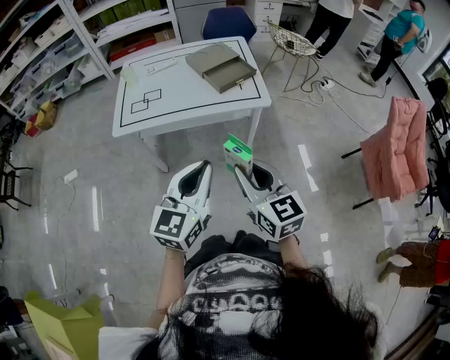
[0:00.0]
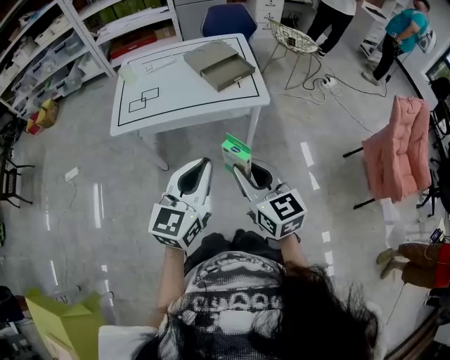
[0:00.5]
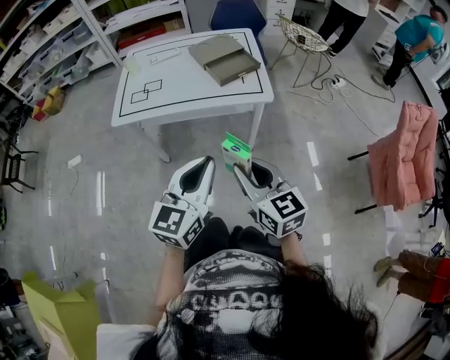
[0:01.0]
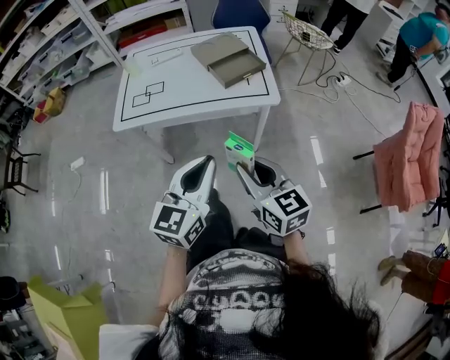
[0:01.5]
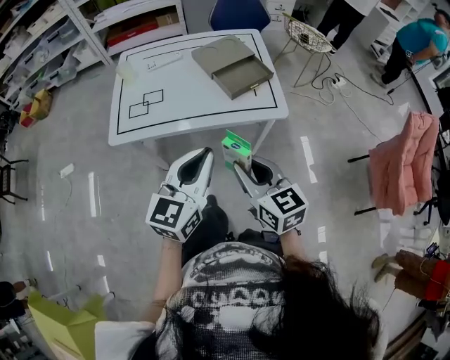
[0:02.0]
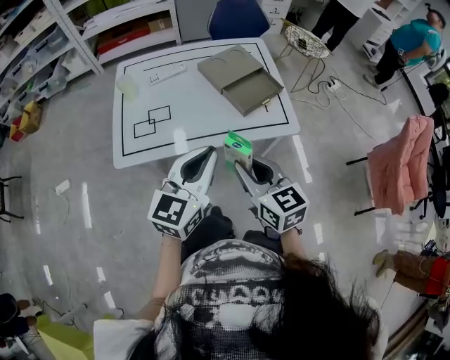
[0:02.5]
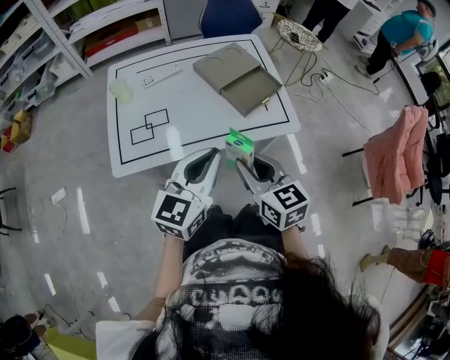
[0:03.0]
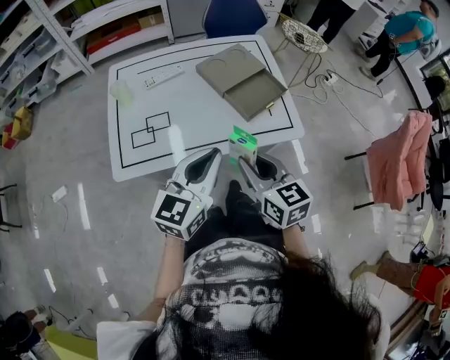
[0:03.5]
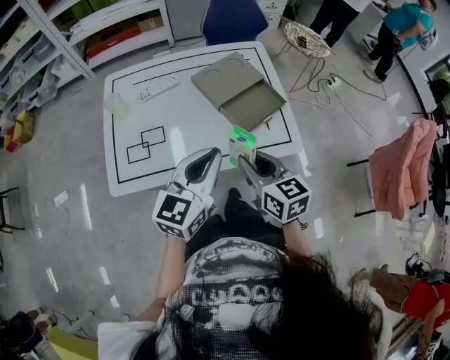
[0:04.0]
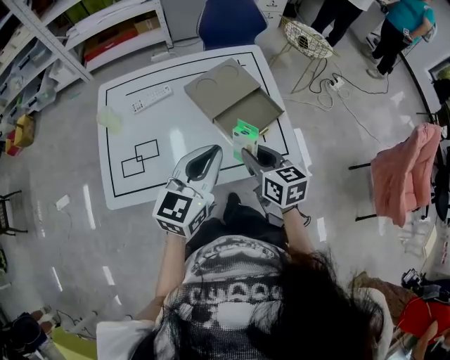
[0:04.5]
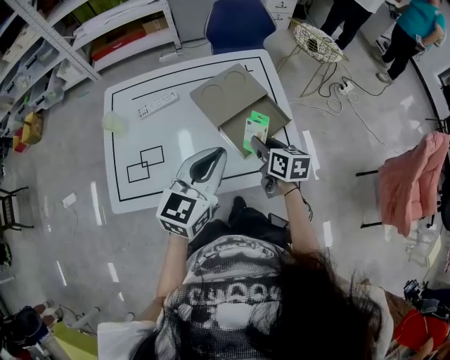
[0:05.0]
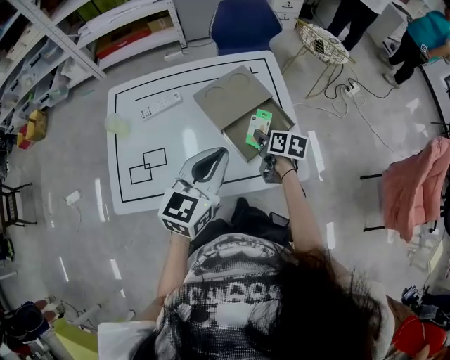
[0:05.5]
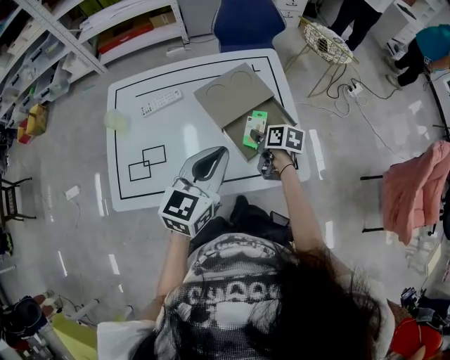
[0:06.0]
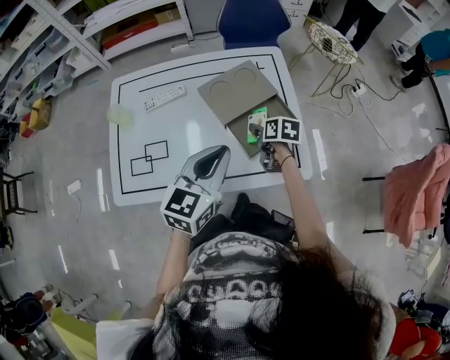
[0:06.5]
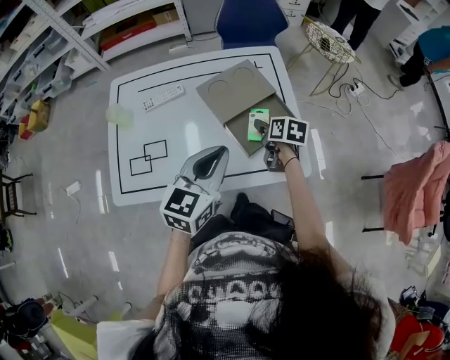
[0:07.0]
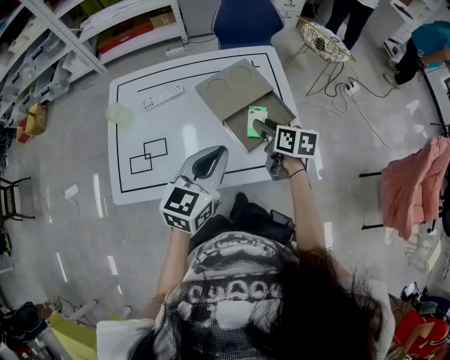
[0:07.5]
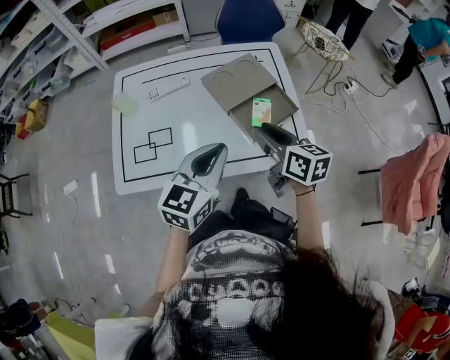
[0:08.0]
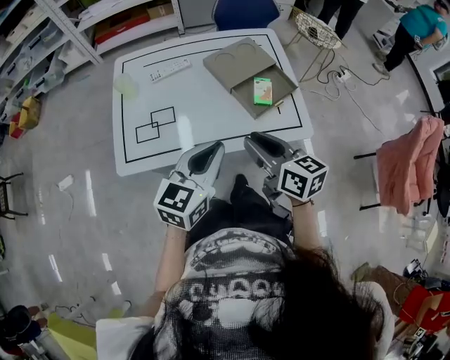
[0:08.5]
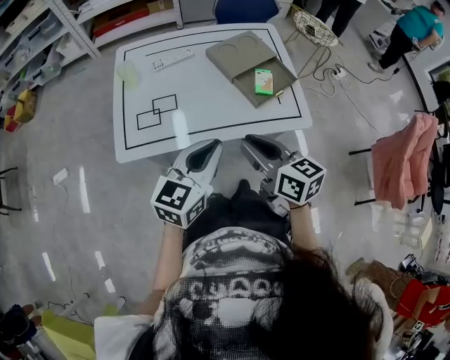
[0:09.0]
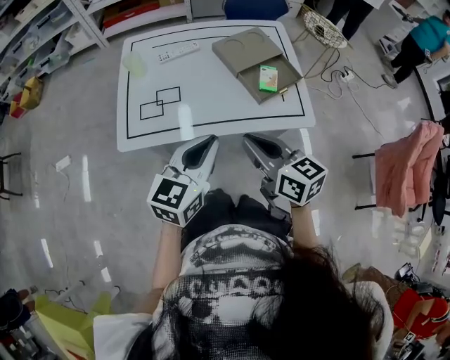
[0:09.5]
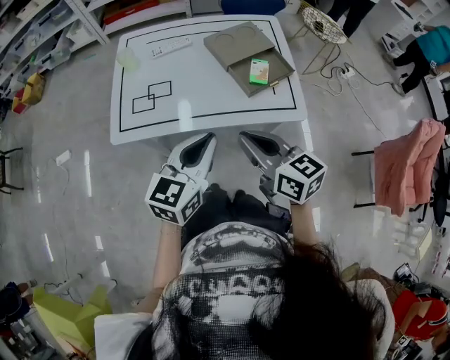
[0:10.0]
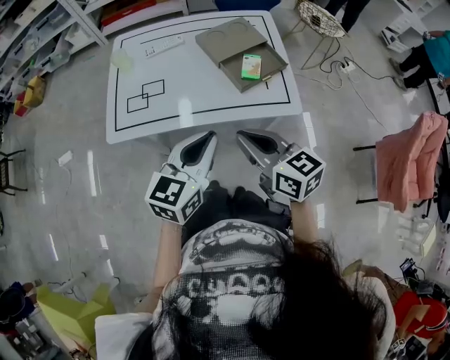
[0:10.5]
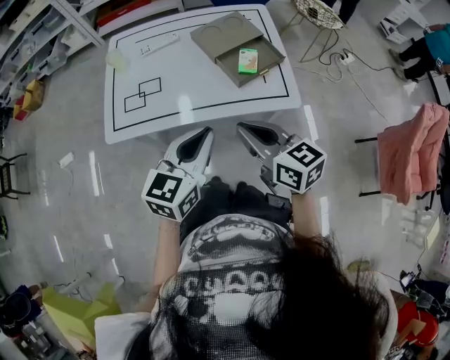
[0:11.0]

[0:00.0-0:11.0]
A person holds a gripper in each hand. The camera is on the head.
0:00.0 to 0:02.0: Both grippers travel together forward, approximately 15 cm.
0:02.0 to 0:03.5: Both grippers move forward and to the left, about 20 cm.
0:03.5 to 0:05.5: The right gripper shifts approximately 35 cm forward, downward and to the right, and rotates about 40 degrees; the left gripper heads forward and to the right, covering some 20 cm.
0:05.5 to 0:07.5: The right gripper shifts roughly 5 cm upward, and opens its fingers.
0:07.5 to 0:09.0: The right gripper moves backward, to the left and upward, approximately 35 cm, changes its angle by some 20 degrees, and closes; the left gripper moves backward and to the left, some 20 cm.
0:09.0 to 0:11.0: The two grippers go about 10 cm to the right.

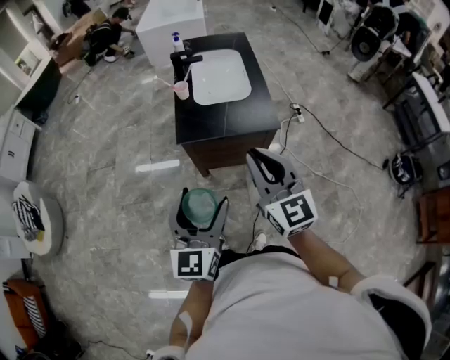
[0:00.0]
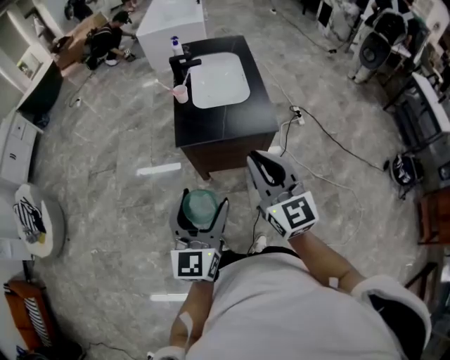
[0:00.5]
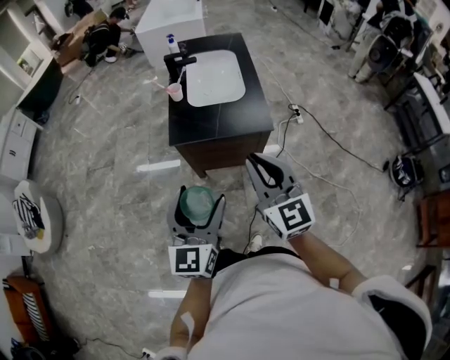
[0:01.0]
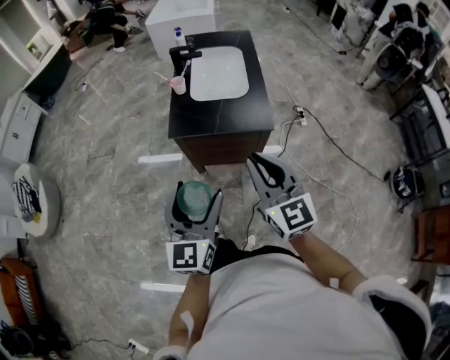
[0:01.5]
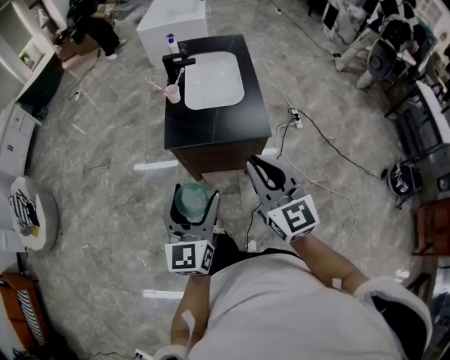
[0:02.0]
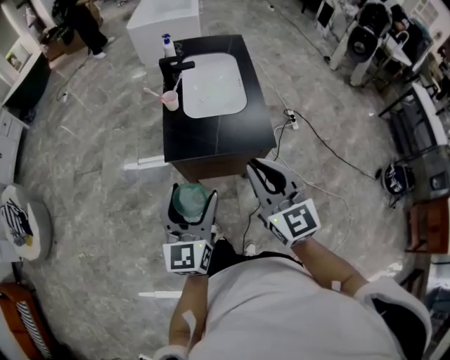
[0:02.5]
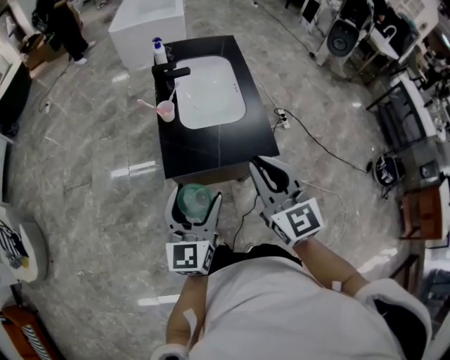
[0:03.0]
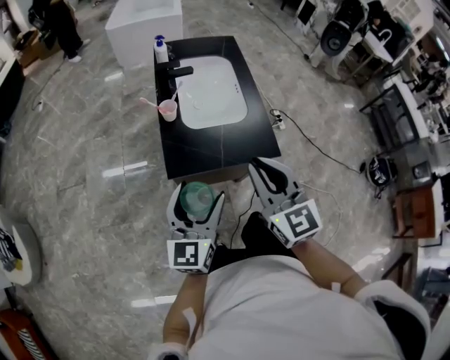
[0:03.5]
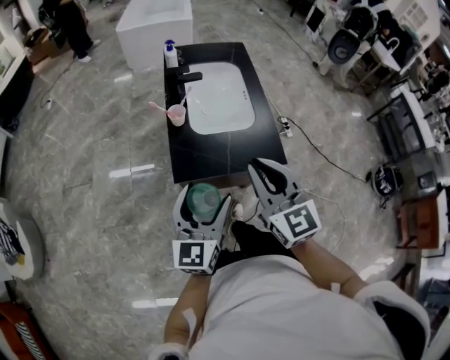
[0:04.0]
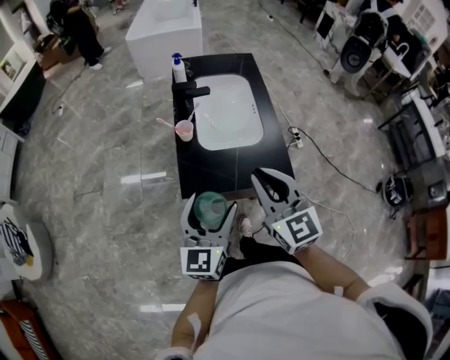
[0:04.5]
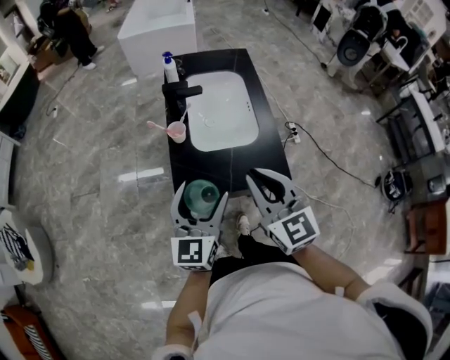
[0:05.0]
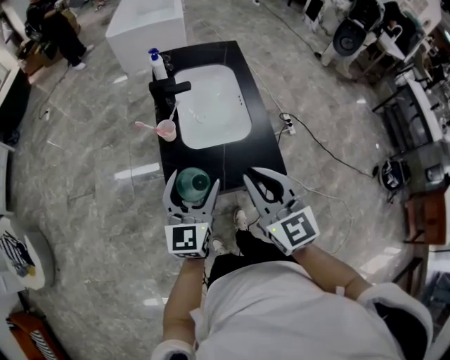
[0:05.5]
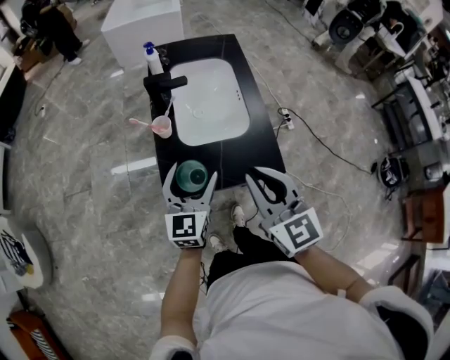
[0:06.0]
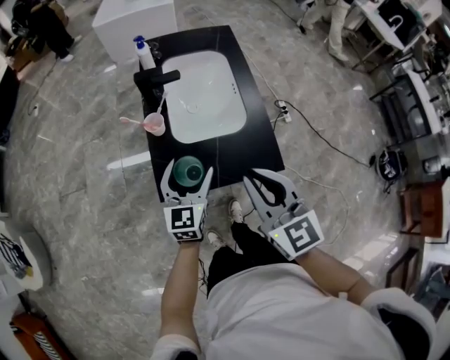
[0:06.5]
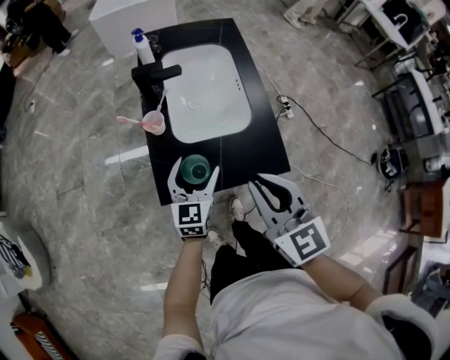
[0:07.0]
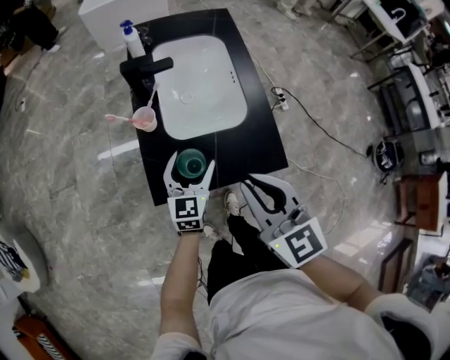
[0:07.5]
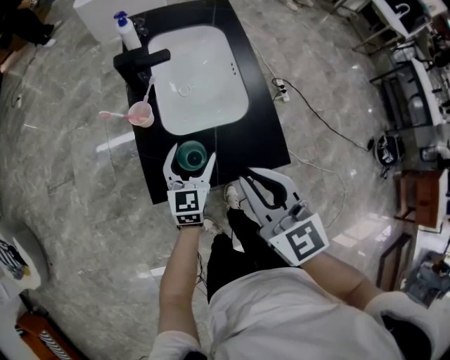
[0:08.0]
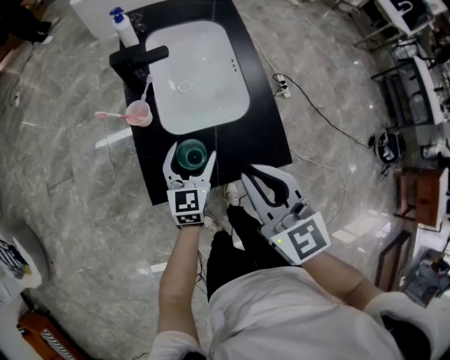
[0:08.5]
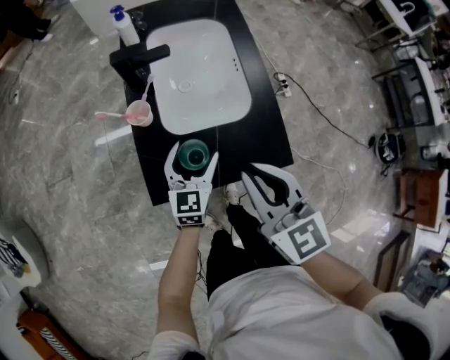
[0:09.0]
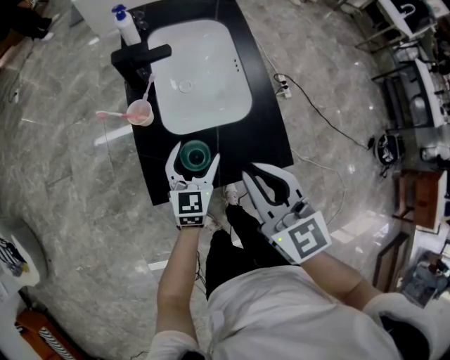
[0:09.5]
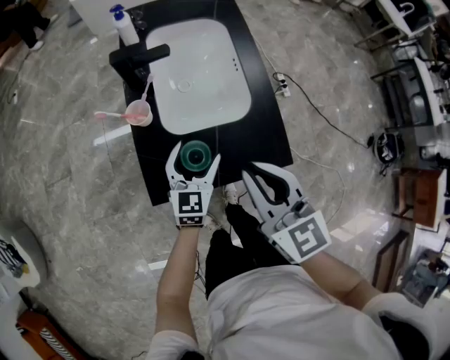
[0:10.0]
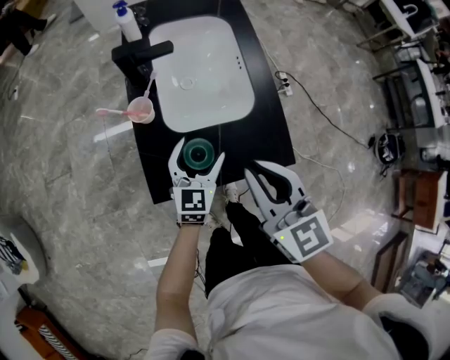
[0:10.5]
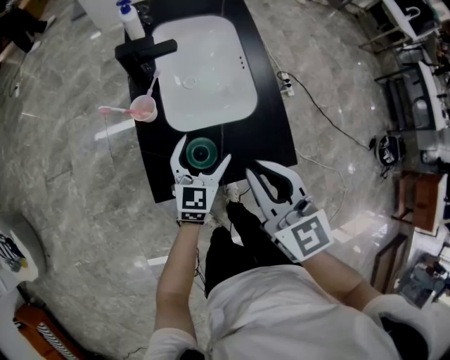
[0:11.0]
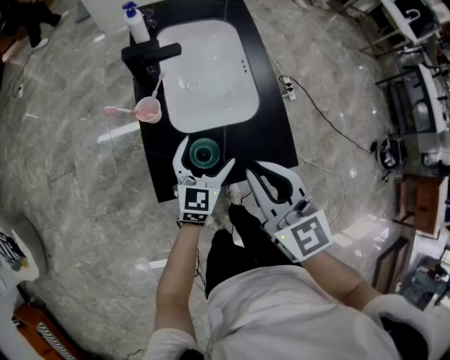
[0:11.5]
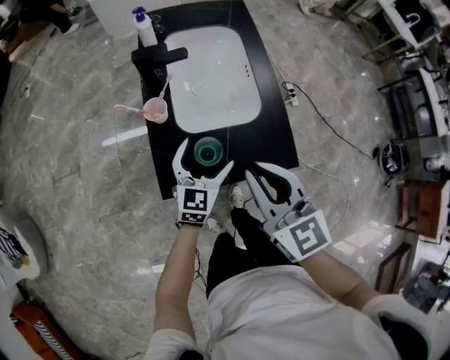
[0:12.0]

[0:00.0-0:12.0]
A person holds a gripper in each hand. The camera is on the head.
0:00.0 to 0:02.0: The right gripper moves to the right, some 5 cm, while the left gripper ends up roughly 5 cm from where it was.
0:02.0 to 0:04.0: The left gripper shifts some 15 cm forward. The right gripper moves forward and to the left, approximately 20 cm.
0:04.0 to 0:06.0: The right gripper goes approximately 5 cm forward; the left gripper moves forward and downward, some 15 cm.
0:06.0 to 0:08.0: The left gripper goes roughly 15 cm downward and forward. Meanwhile the right gripper goes about 5 cm downward.
0:08.0 to 0:12.0: There are only small adjustments of the grippers.

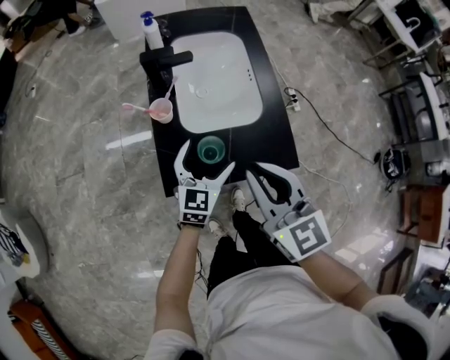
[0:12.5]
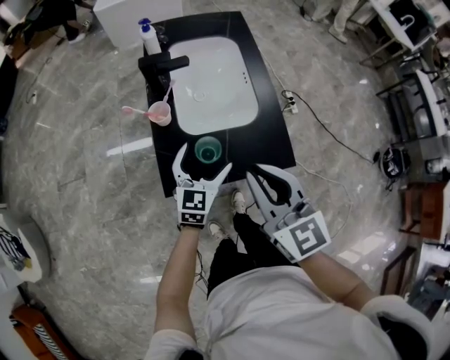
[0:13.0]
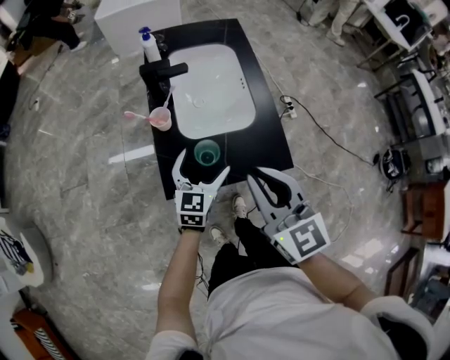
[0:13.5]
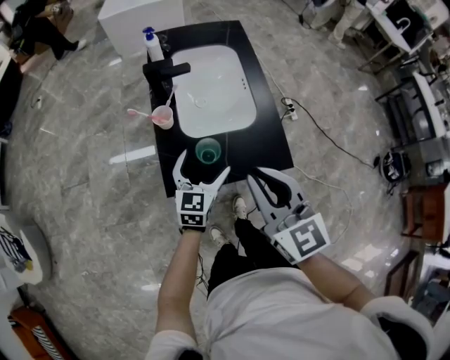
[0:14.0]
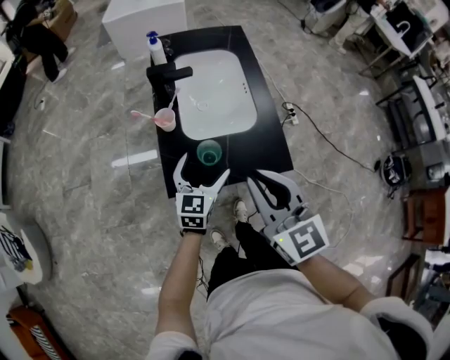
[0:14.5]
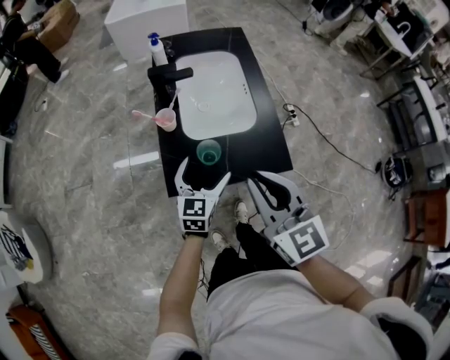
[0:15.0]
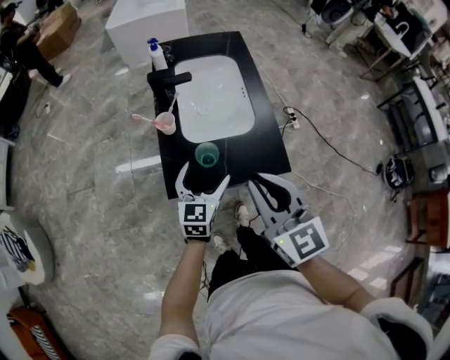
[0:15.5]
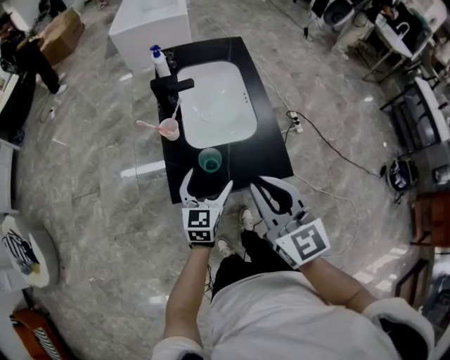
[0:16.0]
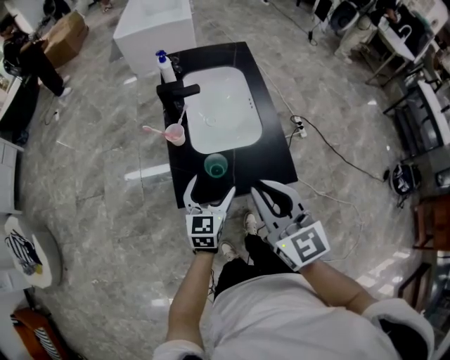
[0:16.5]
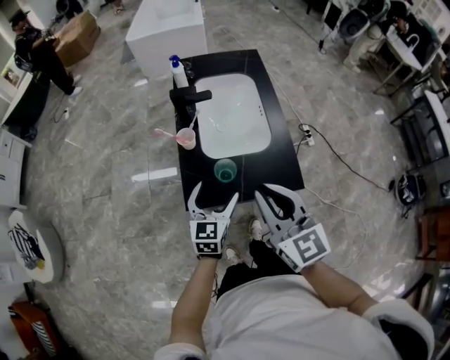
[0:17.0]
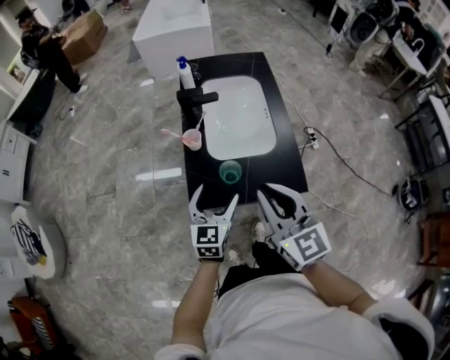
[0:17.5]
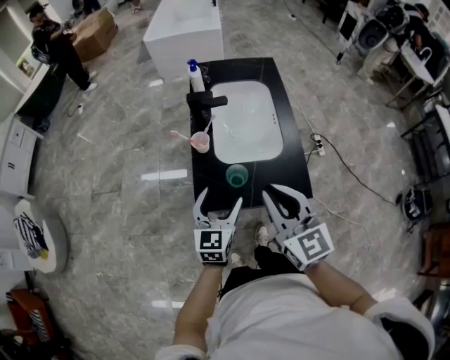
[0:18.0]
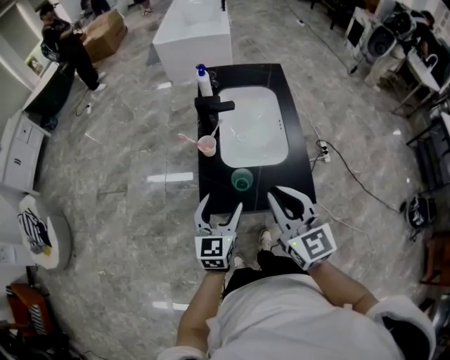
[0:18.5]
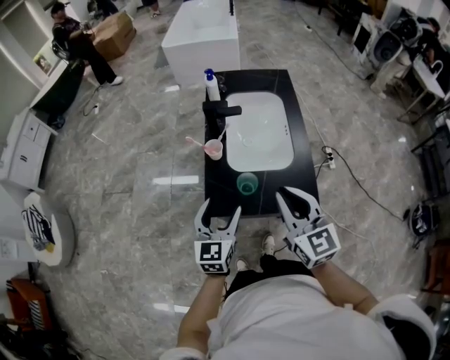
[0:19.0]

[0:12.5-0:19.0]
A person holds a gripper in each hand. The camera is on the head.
0:12.5 to 0:14.5: The right gripper moves roughly 5 cm.
0:14.5 to 0:17.0: The grippers move only a little.
0:17.0 to 0:19.0: The left gripper goes roughly 10 cm upward and to the left.
